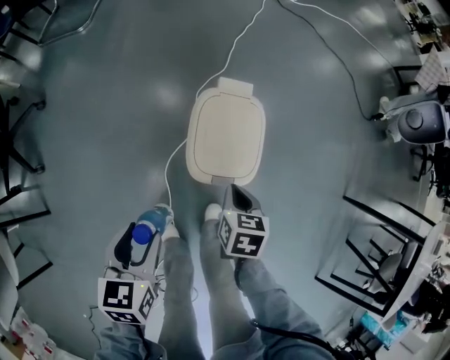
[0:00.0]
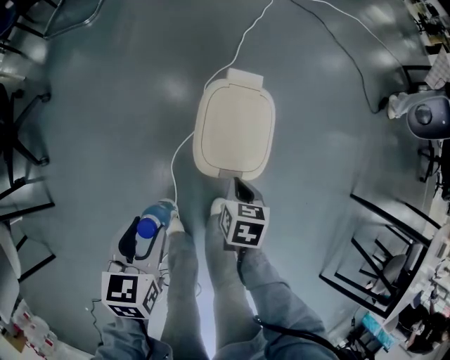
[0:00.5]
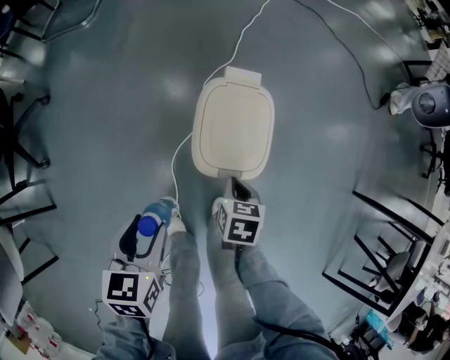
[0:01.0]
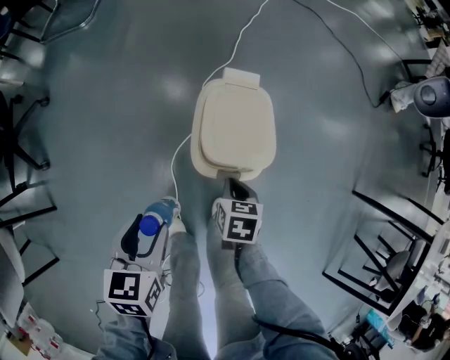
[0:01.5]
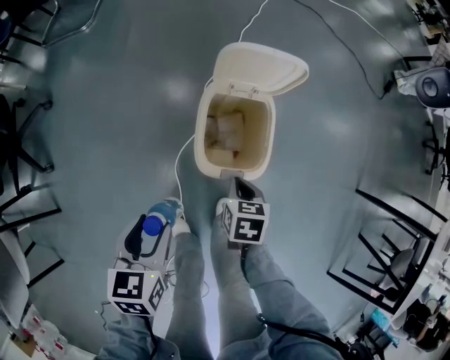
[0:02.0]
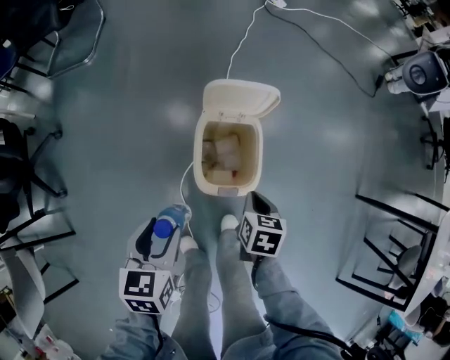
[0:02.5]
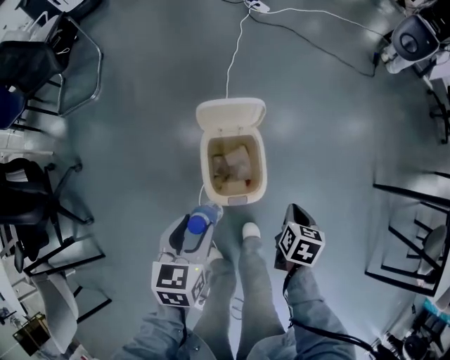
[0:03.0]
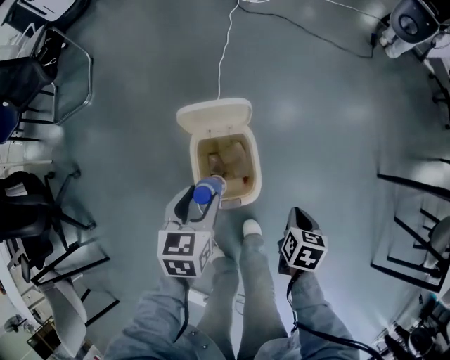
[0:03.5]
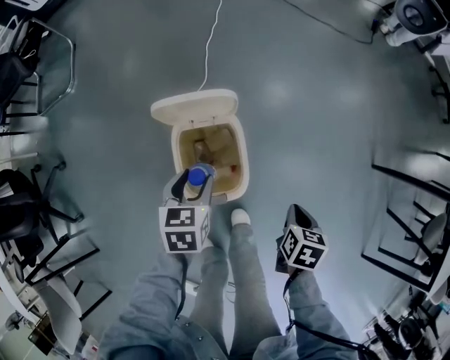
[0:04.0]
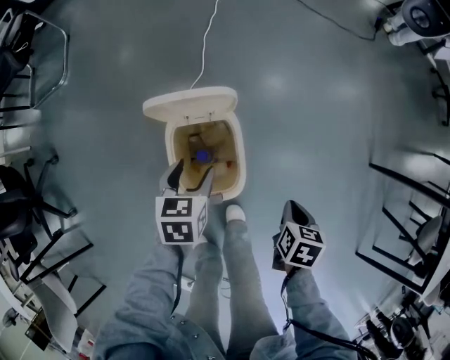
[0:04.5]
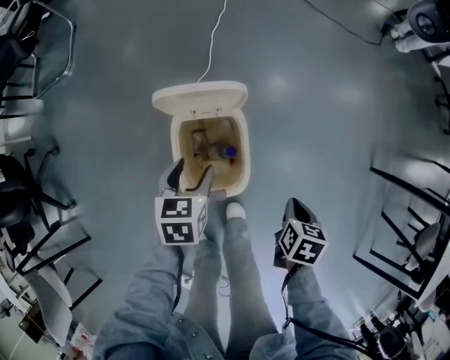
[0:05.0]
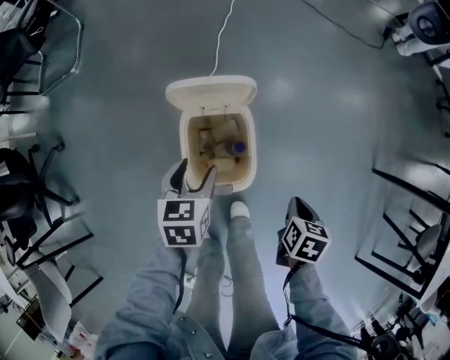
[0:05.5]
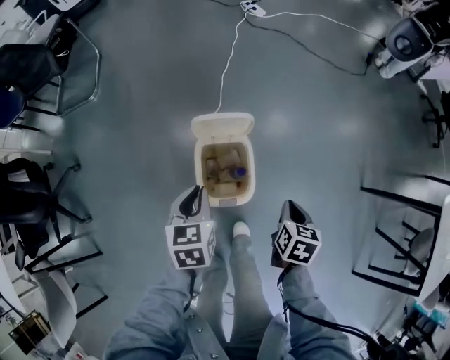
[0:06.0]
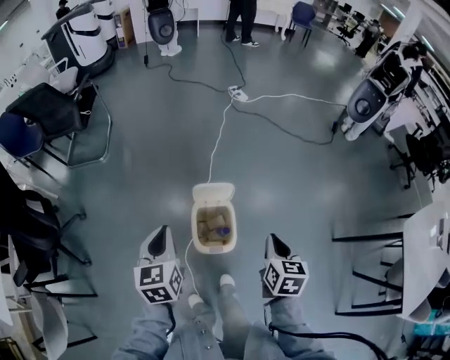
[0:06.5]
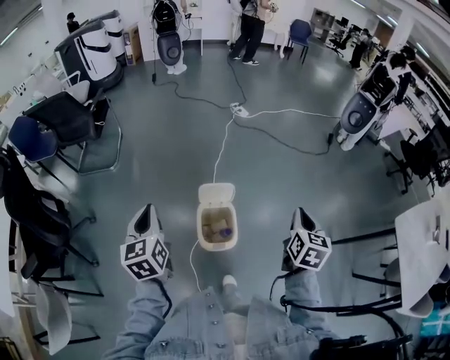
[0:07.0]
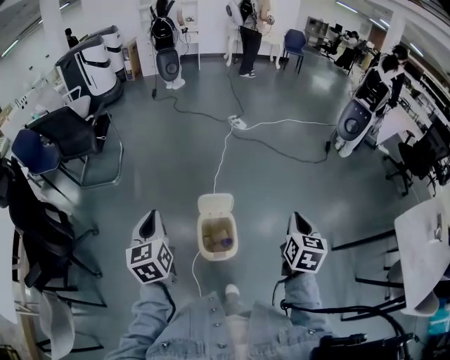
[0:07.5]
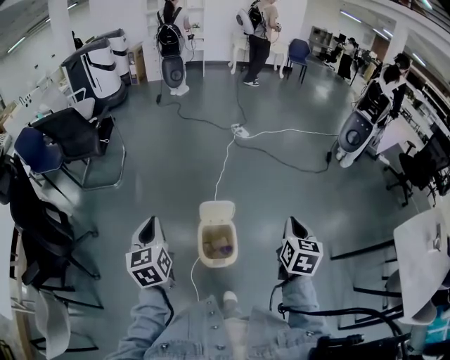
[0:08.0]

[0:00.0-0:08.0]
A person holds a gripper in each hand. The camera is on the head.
0:00.0 to 0:02.0: The grippers move only a little.
0:02.0 to 0:04.0: The right gripper travels to the right by some 20 cm, and swivels roughly 30 degrees; the left gripper heads forward and to the right, covering approximately 25 cm.
0:04.0 to 0:06.0: The right gripper travels upward and to the left by some 10 cm. Meanwhile the left gripper shifts some 15 cm upward, and closes.
0:06.0 to 0:08.0: Both grippers move upward, some 40 cm. The left gripper turns by about 30 degrees. The right gripper turns by some 30 degrees.

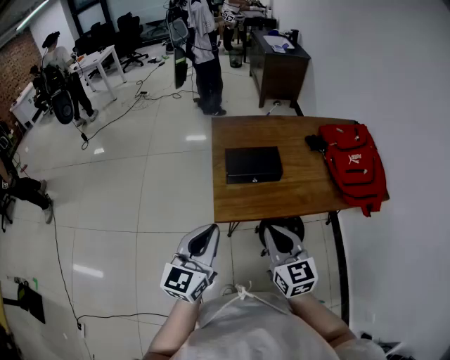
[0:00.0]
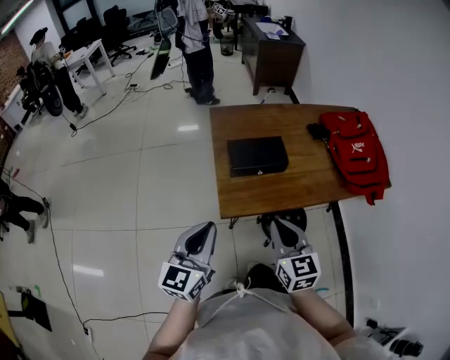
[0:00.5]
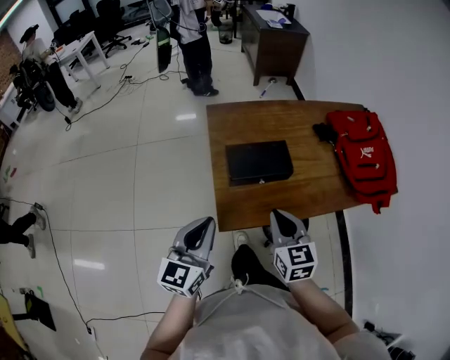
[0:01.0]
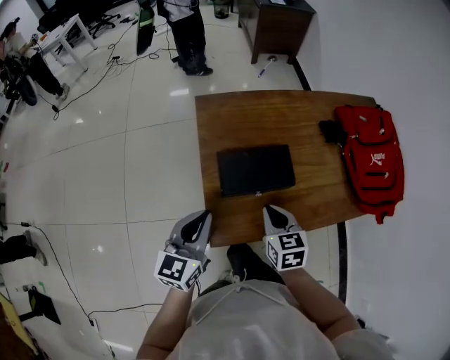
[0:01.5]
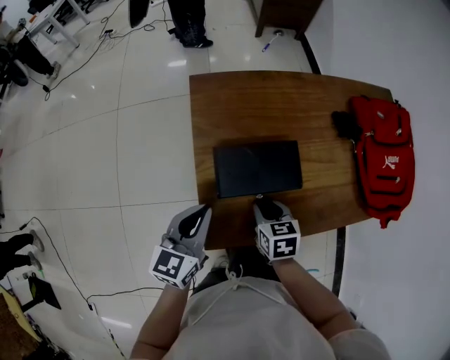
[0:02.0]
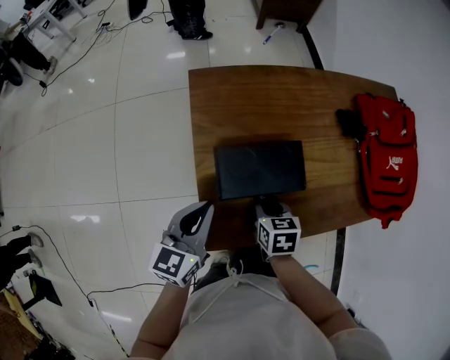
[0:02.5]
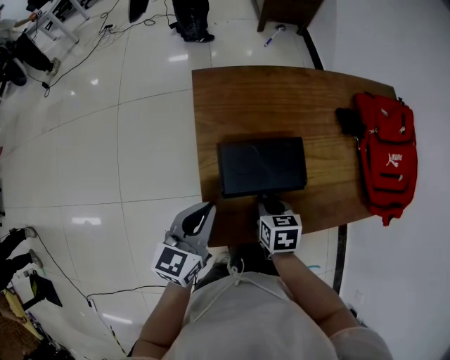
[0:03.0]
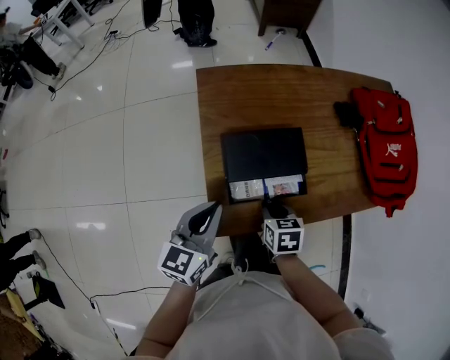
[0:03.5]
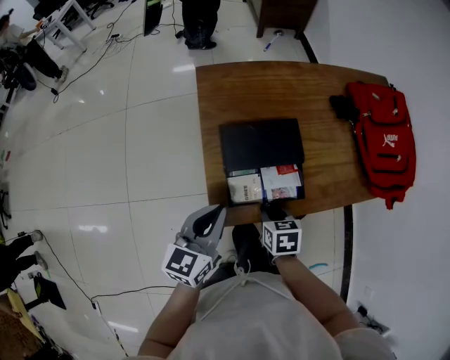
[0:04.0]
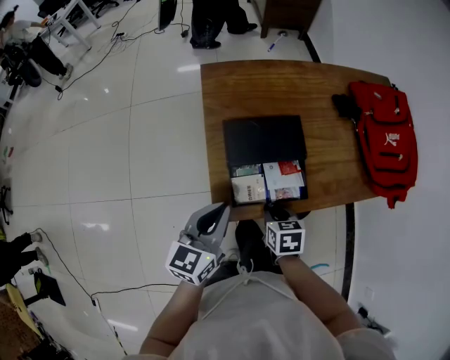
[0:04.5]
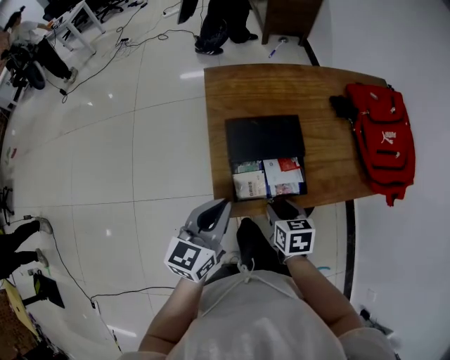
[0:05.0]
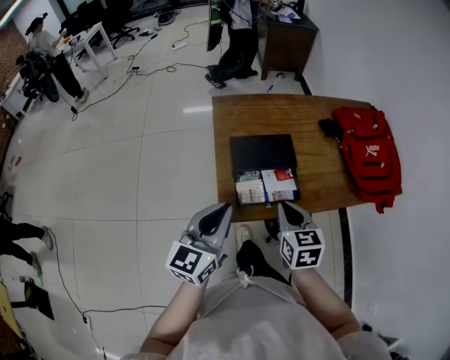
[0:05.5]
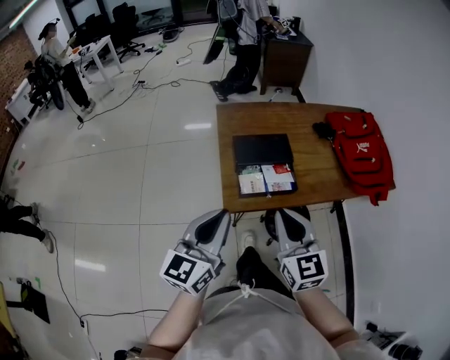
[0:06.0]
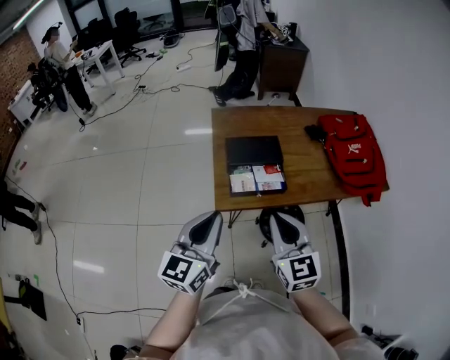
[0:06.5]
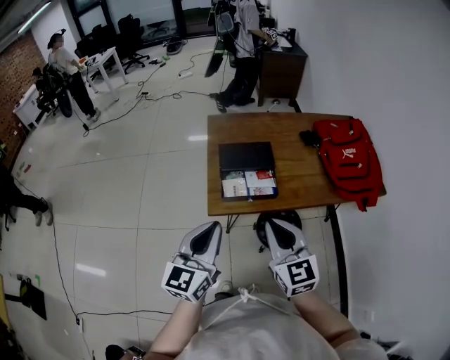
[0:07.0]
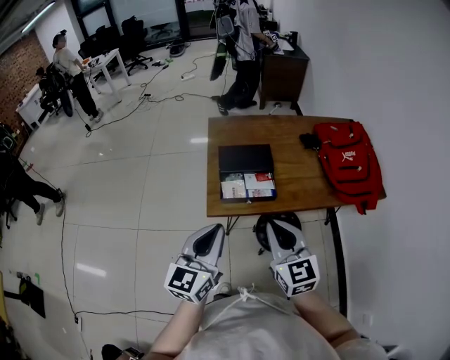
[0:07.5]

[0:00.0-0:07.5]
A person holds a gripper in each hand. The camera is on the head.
0:00.0 to 0:02.0: Both grippers move forward and downward, some 30 cm. The right gripper tilts its fingers roughly 40 degrees downward, and opens its fingers.
0:02.0 to 0:04.0: The two grippers go about 10 cm backward.
0:04.0 to 0:05.5: The right gripper shifts some 15 cm upward, rotates approximately 30 degrees, and opens, then closes again. The left gripper shifts about 10 cm upward and backward.
0:05.5 to 0:07.5: The right gripper travels backward and upward by about 20 cm, and changes its angle by roughly 30 degrees; the left gripper goes some 15 cm backward and to the right.

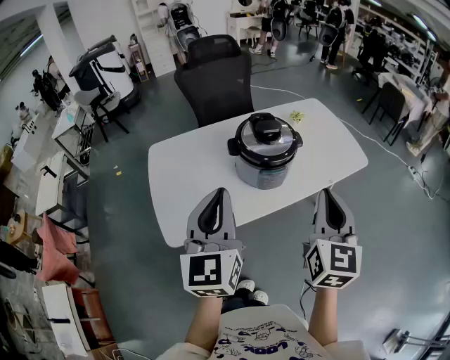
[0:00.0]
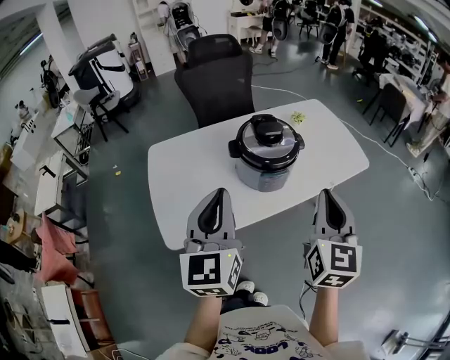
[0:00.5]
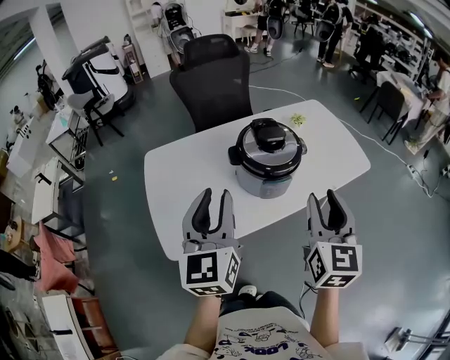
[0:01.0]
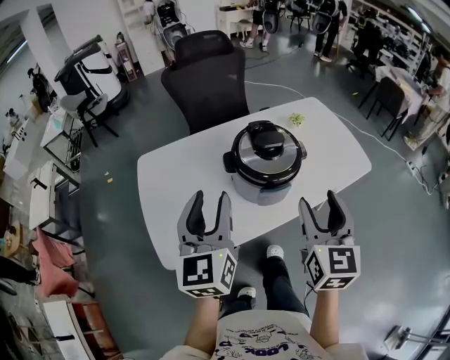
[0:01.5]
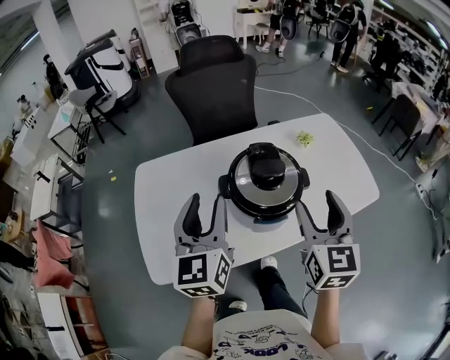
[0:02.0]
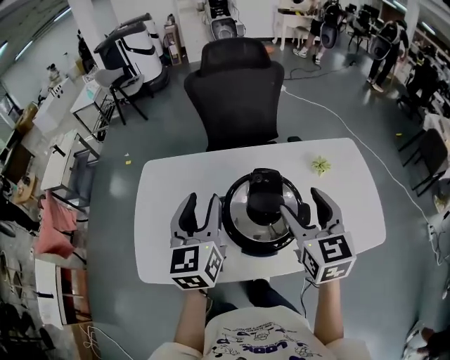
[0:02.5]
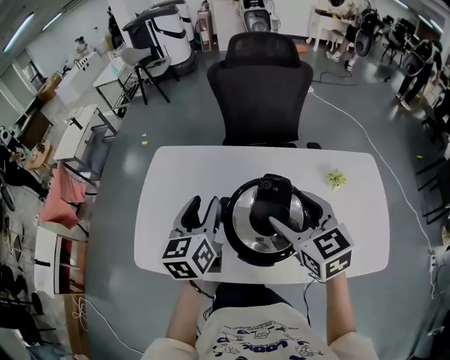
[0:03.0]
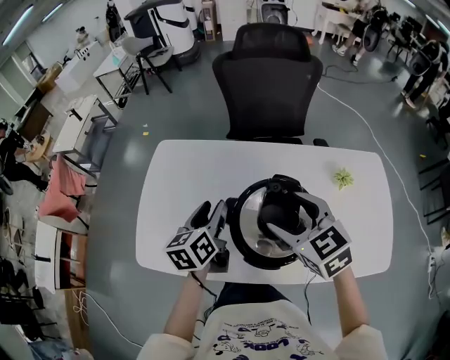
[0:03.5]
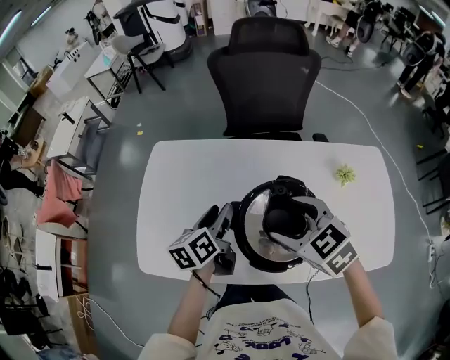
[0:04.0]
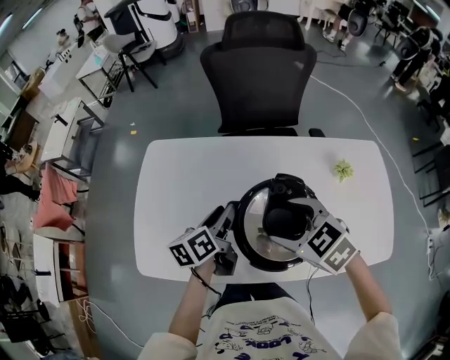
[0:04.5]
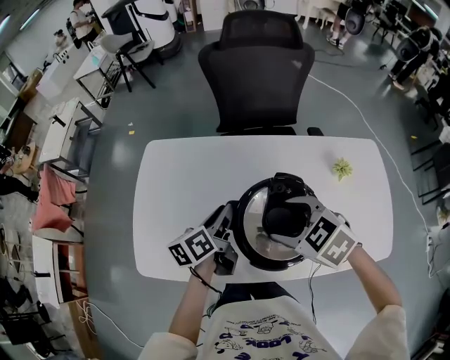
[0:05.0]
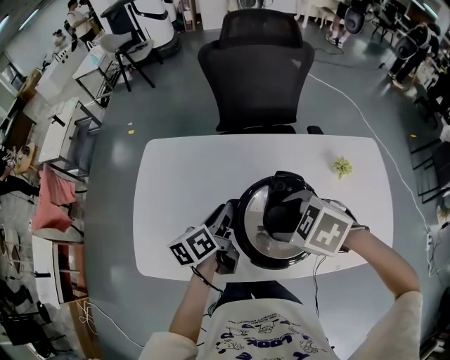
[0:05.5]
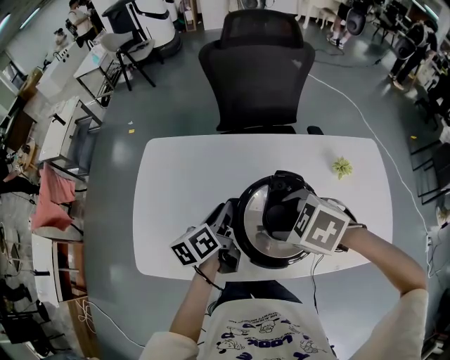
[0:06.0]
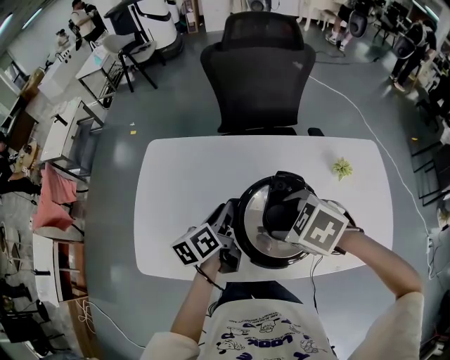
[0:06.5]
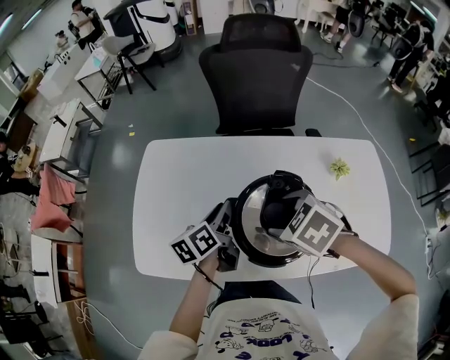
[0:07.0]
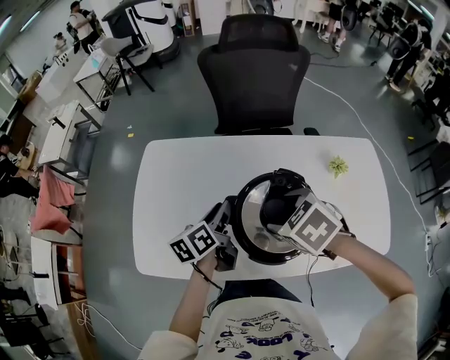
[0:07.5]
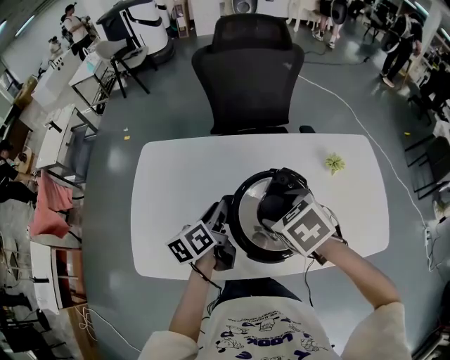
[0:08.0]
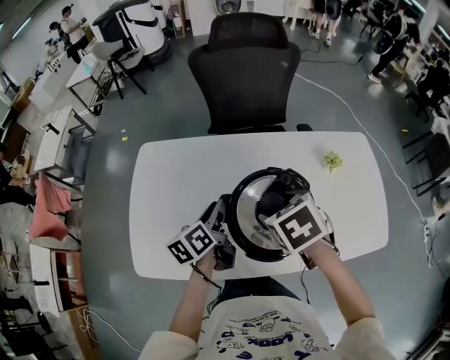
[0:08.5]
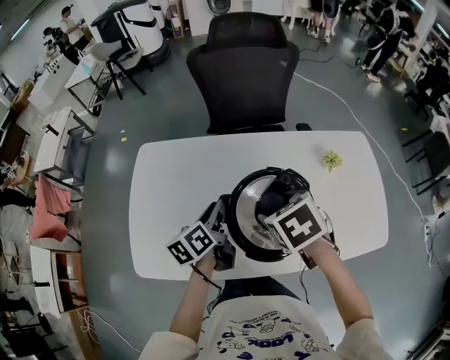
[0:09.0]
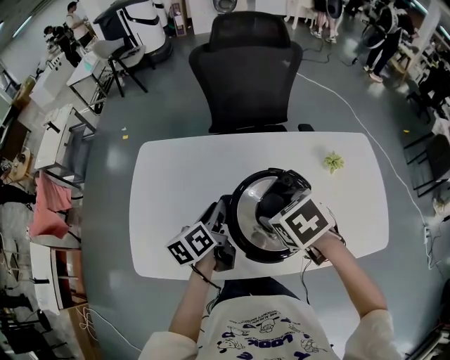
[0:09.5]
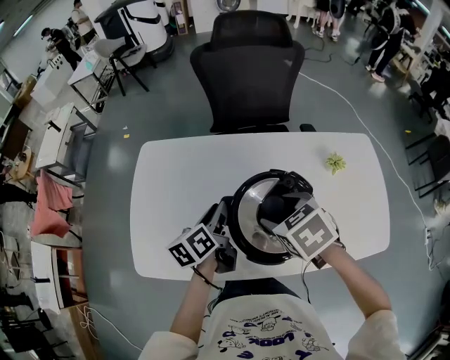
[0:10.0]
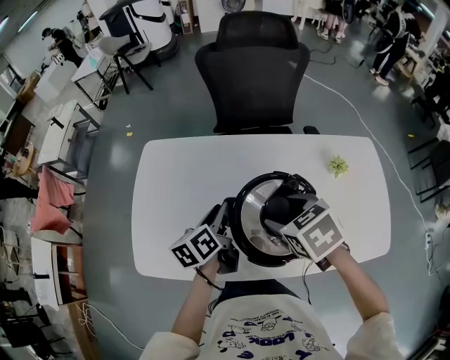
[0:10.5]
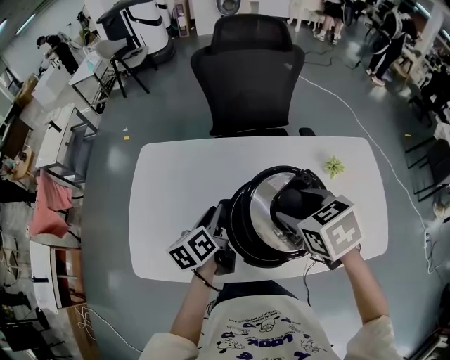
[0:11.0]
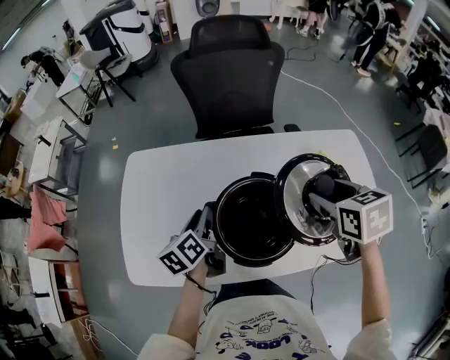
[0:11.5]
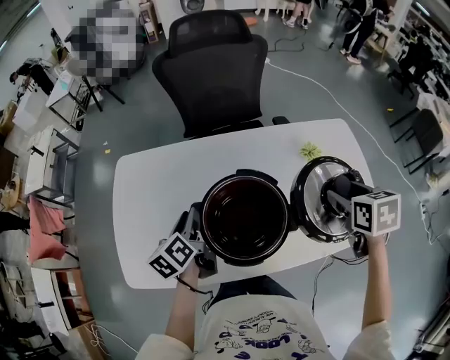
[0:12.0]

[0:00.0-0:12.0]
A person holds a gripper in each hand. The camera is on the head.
0:00.0 to 0:02.0: The two grippers go approximately 25 cm forward. The right gripper opens; the left gripper opens up.
0:02.0 to 0:04.0: The left gripper heads downward, covering some 20 cm, and rolls counterclockwise, seen from behind, by roughly 40 degrees, while the right gripper moves some 25 cm, and points its fingers approximately 30 degrees further downward.
0:04.0 to 0:06.0: The right gripper rotates some 30 degrees.
0:06.0 to 0:08.0: The right gripper turns by about 30 degrees.
0:08.0 to 0:10.0: The grippers move only a little.
0:10.0 to 0:12.0: The right gripper travels to the right by some 30 cm, and changes its angle by some 40 degrees.
